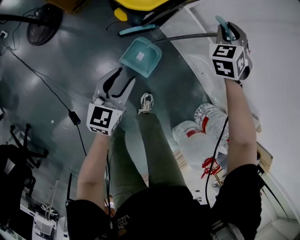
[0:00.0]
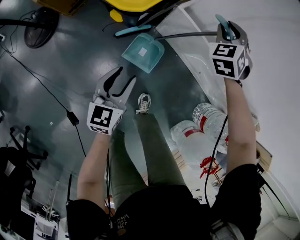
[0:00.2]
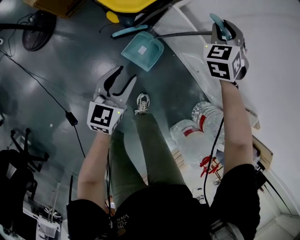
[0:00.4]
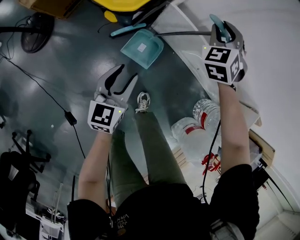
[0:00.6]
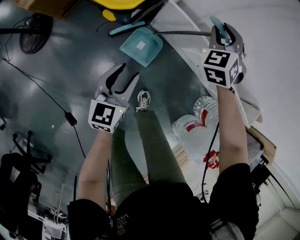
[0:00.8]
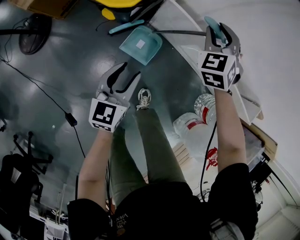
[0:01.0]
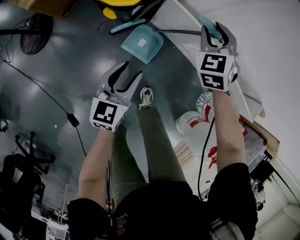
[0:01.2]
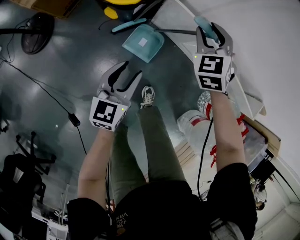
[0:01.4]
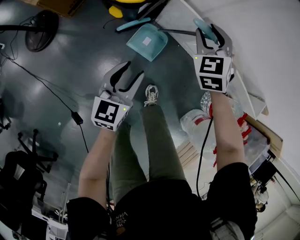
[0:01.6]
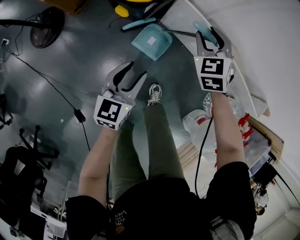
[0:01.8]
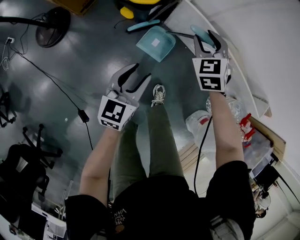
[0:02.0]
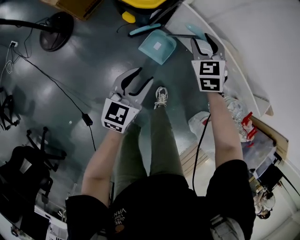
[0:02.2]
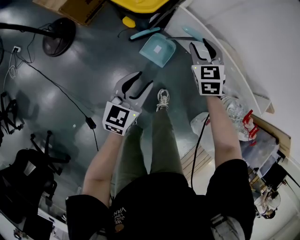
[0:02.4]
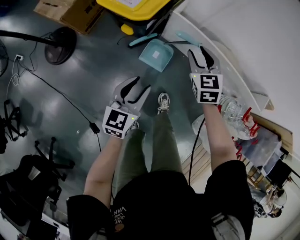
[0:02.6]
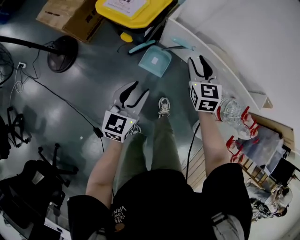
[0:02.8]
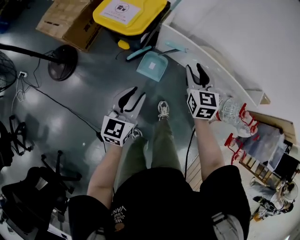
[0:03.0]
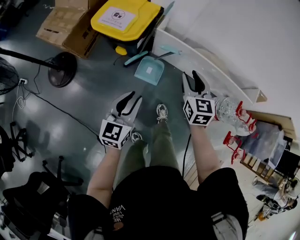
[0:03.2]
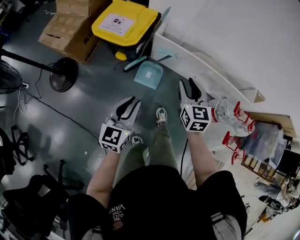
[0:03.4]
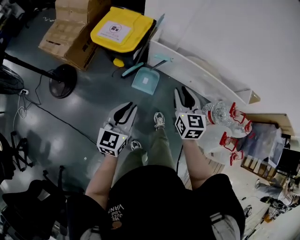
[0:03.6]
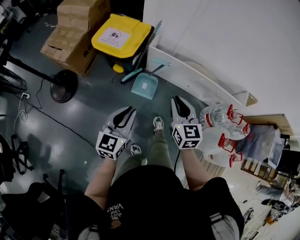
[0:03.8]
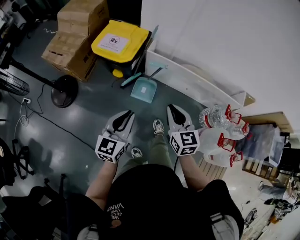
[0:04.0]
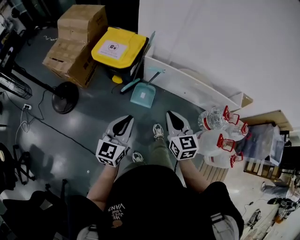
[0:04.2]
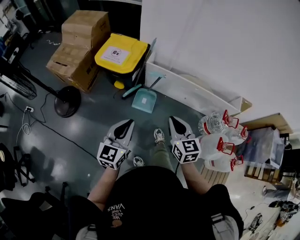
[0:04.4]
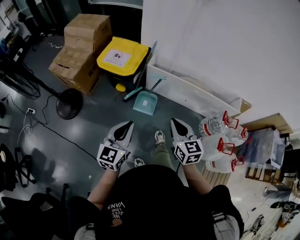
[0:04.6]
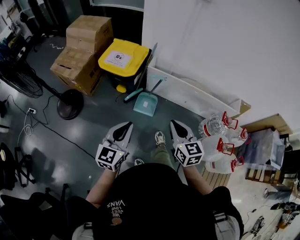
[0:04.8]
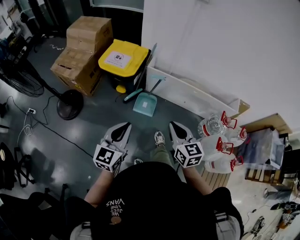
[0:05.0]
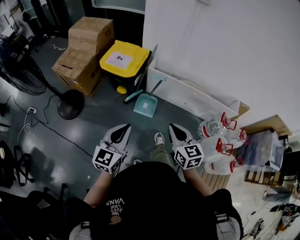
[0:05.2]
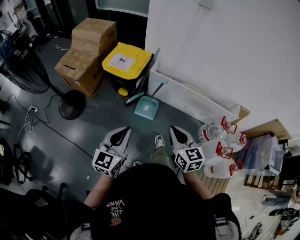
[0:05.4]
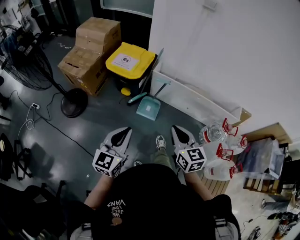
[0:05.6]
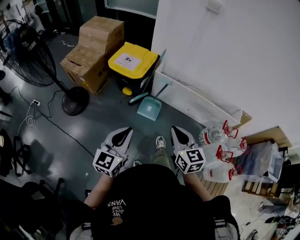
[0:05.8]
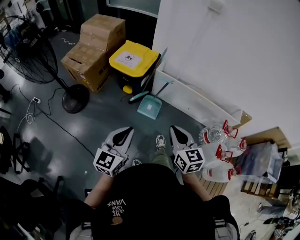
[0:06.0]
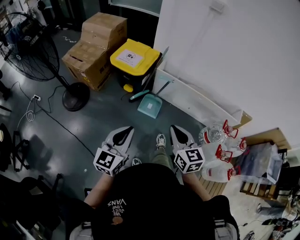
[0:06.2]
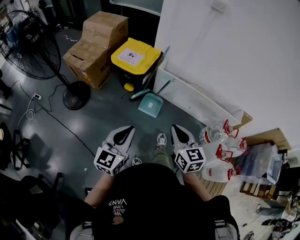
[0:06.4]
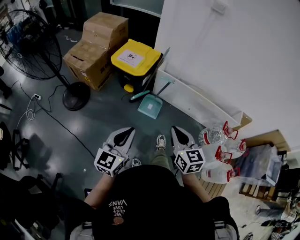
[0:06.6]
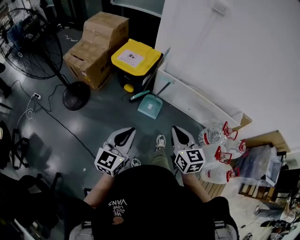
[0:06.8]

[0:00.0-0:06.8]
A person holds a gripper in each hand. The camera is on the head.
0:00.0 to 0:01.4: The right gripper shifts roughly 10 cm backward.
0:01.4 to 0:02.8: The right gripper moves backward and upward, about 15 cm, and turns by roughly 30 degrees; the left gripper heads upward and backward, covering roughly 15 cm.
0:02.8 to 0:04.0: The left gripper travels upward and backward by approximately 15 cm, and closes. Meanwhile the right gripper shifts some 25 cm backward and upward, and closes its fingers.
0:04.0 to 0:05.4: The two grippers go about 10 cm backward and upward.
0:05.4 to 0:06.8: The grippers make only small movements.

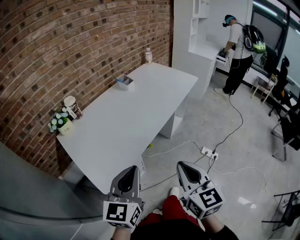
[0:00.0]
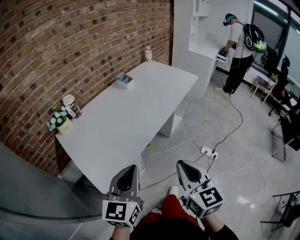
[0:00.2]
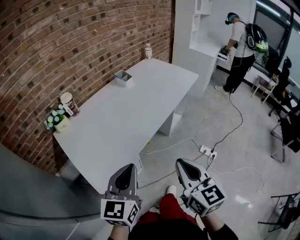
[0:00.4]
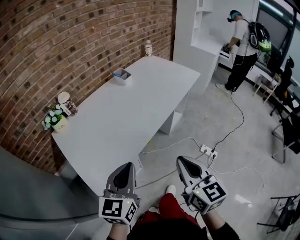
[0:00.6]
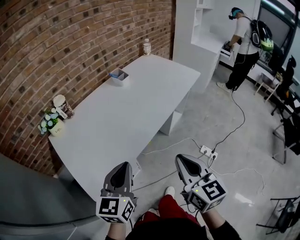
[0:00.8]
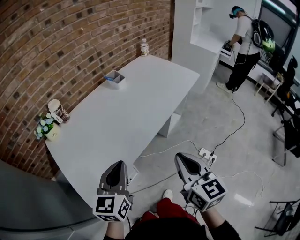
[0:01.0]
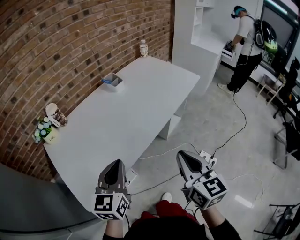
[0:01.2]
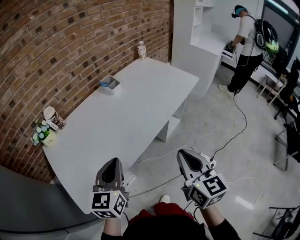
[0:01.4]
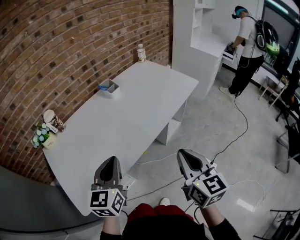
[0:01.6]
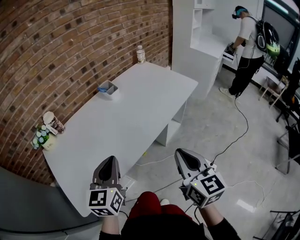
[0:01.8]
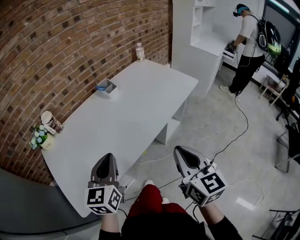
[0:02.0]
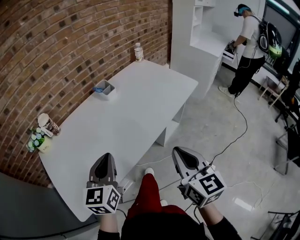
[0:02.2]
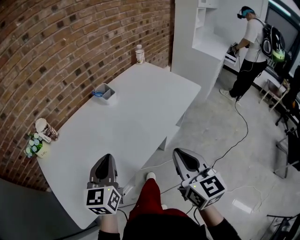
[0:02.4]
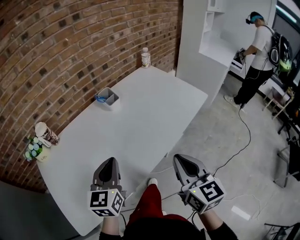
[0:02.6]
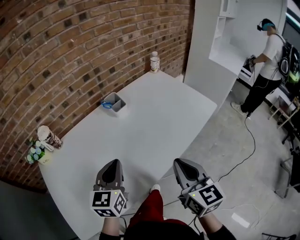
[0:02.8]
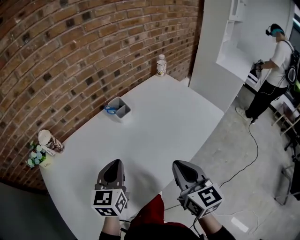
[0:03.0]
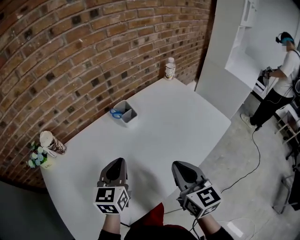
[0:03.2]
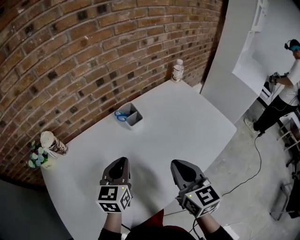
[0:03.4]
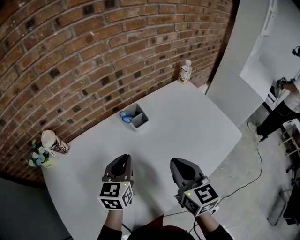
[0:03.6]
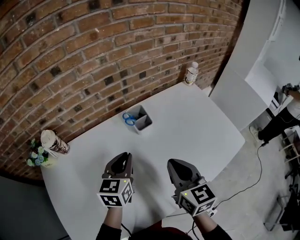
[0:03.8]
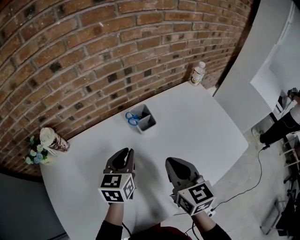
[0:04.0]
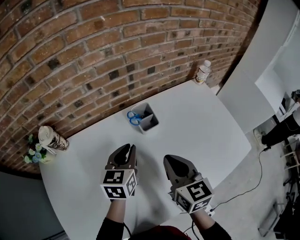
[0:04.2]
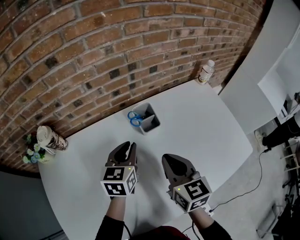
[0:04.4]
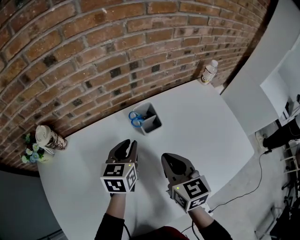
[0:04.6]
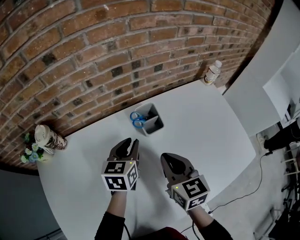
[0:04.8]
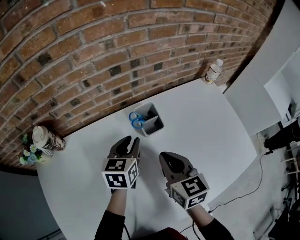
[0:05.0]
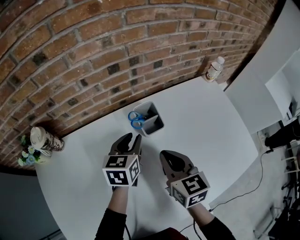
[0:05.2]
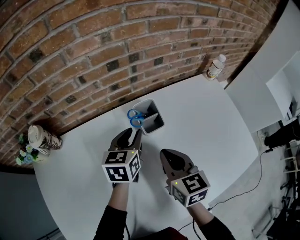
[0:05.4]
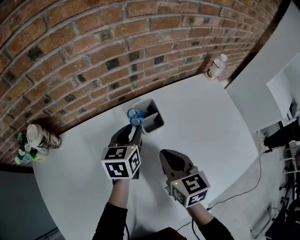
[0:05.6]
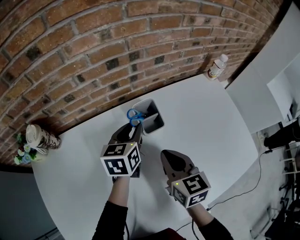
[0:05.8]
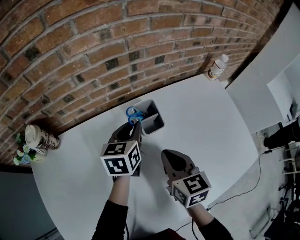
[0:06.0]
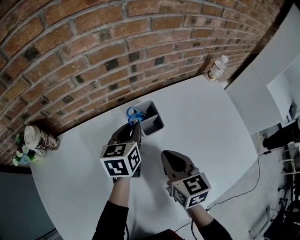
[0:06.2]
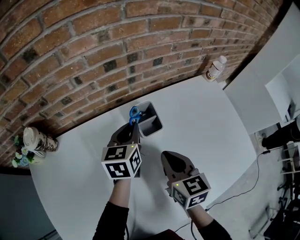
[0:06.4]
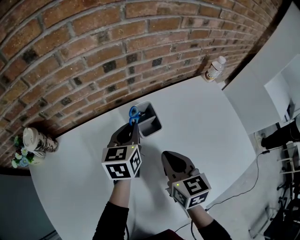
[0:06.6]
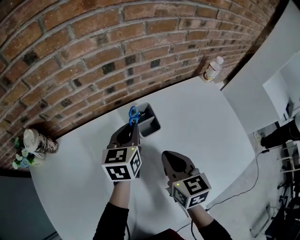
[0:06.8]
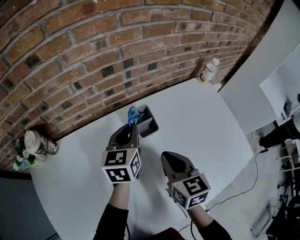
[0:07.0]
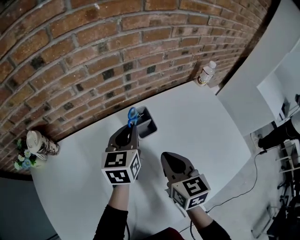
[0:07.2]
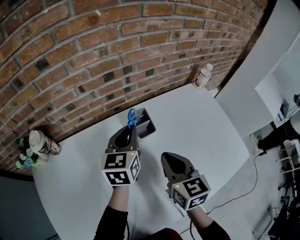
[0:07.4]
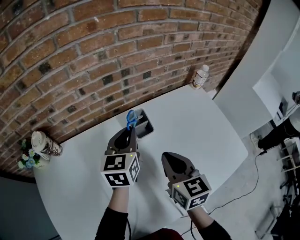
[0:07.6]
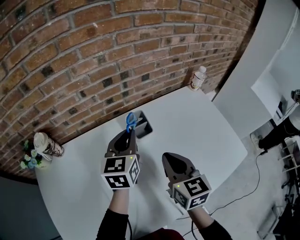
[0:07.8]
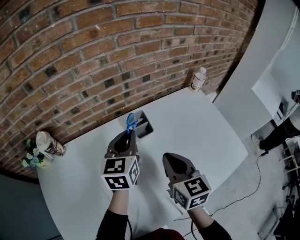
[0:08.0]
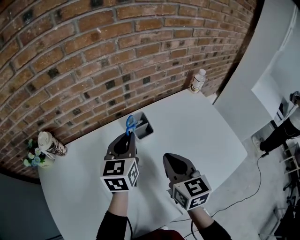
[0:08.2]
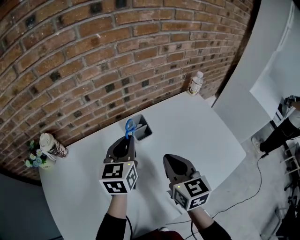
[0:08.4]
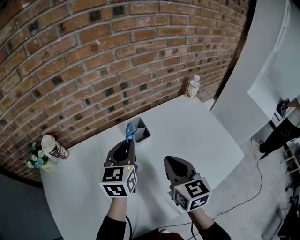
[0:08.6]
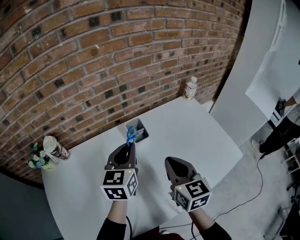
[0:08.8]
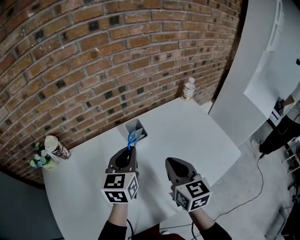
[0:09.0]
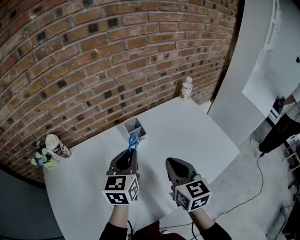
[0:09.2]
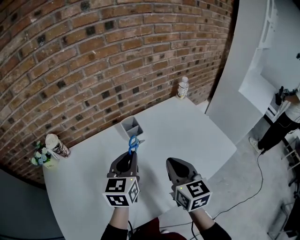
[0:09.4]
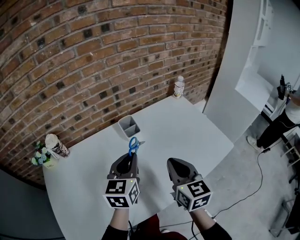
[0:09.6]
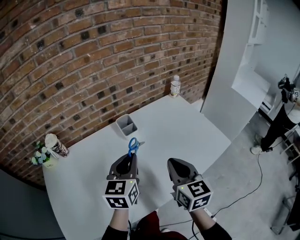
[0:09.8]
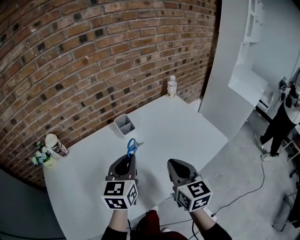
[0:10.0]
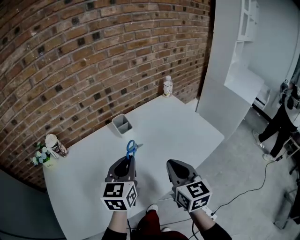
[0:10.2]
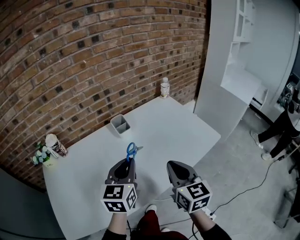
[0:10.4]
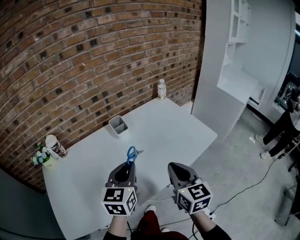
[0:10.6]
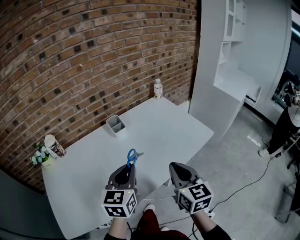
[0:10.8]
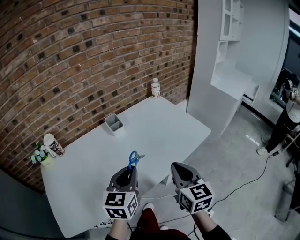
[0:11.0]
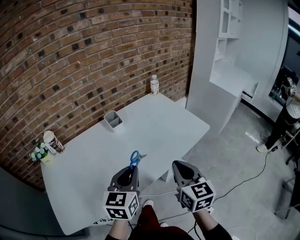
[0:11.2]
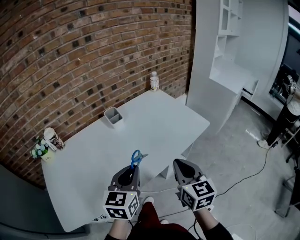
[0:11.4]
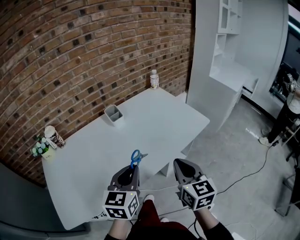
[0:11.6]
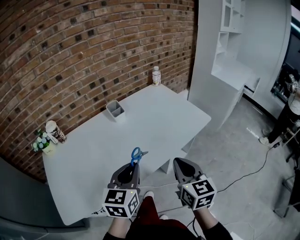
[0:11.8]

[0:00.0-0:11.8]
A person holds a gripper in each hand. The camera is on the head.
0:00.0 to 0:01.4: The left gripper is displaced forward by about 20 cm, while the right gripper shifts approximately 25 cm forward and to the right.
0:01.4 to 0:03.0: Both grippers move forward, approximately 25 cm.
0:03.0 to 0:04.4: The grippers both shift forward by roughly 20 cm.
0:04.4 to 0:06.0: The left gripper moves forward, about 10 cm, while the right gripper travels downward and forward by about 10 cm.
0:06.0 to 0:07.4: Both grippers move upward, some 5 cm.
0:07.4 to 0:08.8: The left gripper moves backward and upward, roughly 10 cm, while the right gripper shifts approximately 10 cm upward and backward.
0:08.8 to 0:10.4: The right gripper is displaced backward and to the right by roughly 20 cm; the left gripper moves backward, approximately 20 cm.
0:10.4 to 0:11.8: The left gripper heads backward, covering some 15 cm; the right gripper moves backward and to the right, some 10 cm.

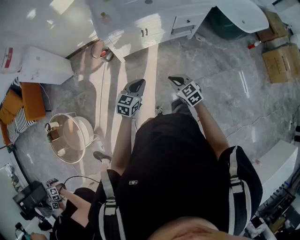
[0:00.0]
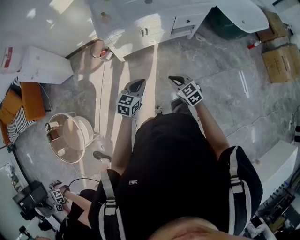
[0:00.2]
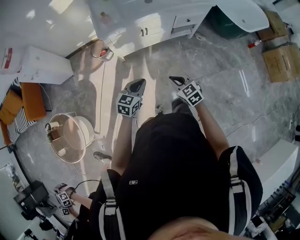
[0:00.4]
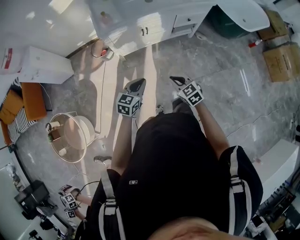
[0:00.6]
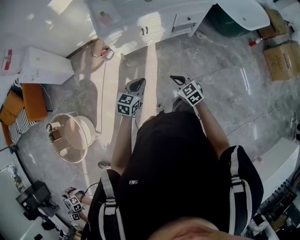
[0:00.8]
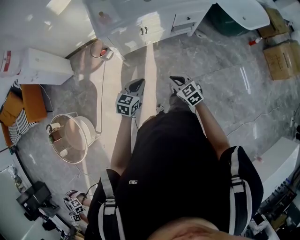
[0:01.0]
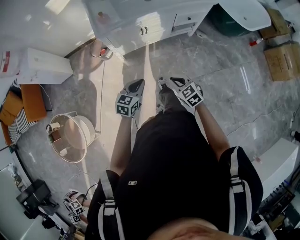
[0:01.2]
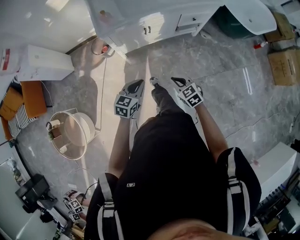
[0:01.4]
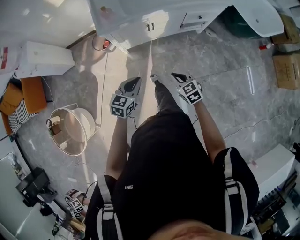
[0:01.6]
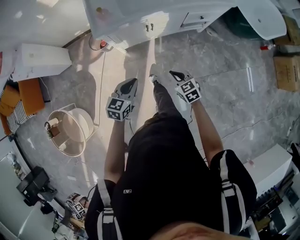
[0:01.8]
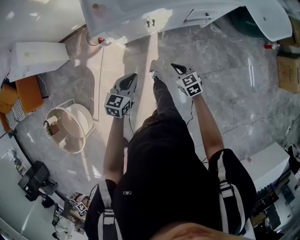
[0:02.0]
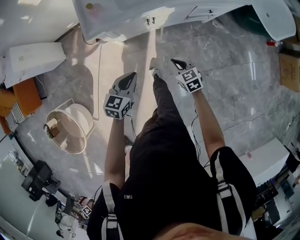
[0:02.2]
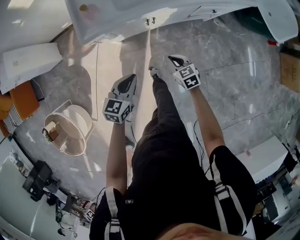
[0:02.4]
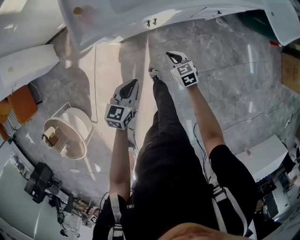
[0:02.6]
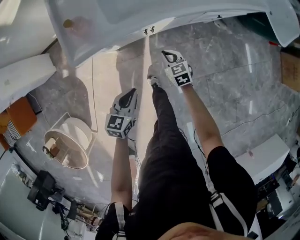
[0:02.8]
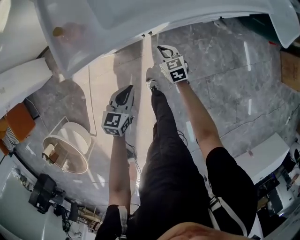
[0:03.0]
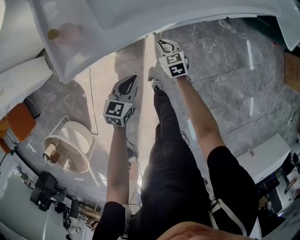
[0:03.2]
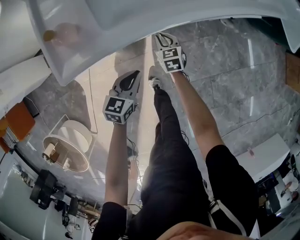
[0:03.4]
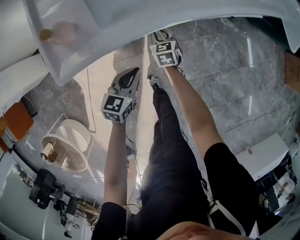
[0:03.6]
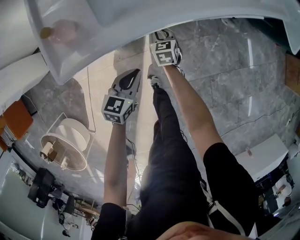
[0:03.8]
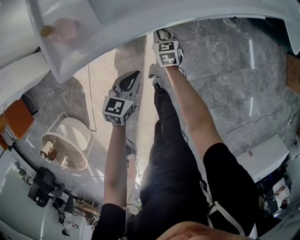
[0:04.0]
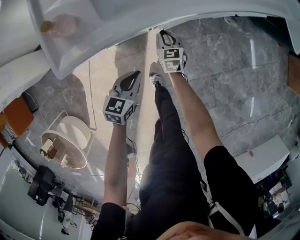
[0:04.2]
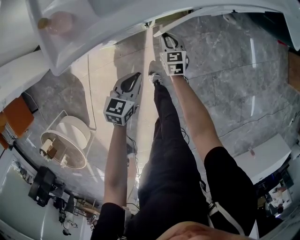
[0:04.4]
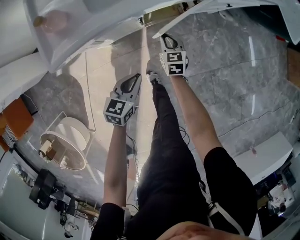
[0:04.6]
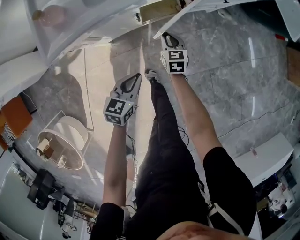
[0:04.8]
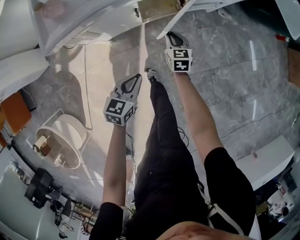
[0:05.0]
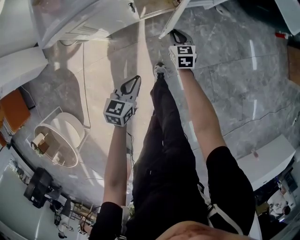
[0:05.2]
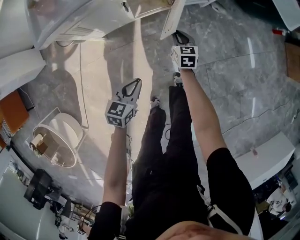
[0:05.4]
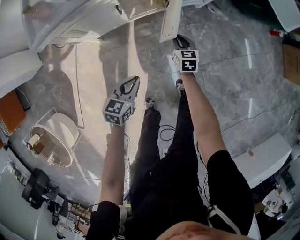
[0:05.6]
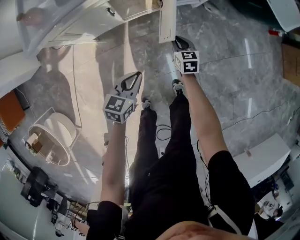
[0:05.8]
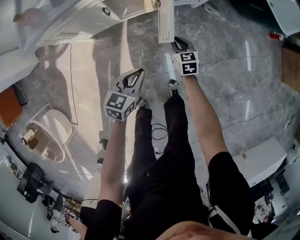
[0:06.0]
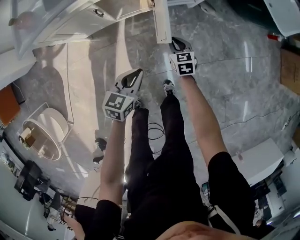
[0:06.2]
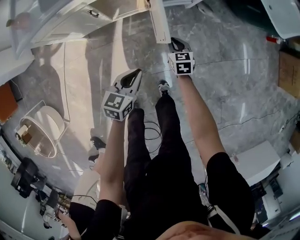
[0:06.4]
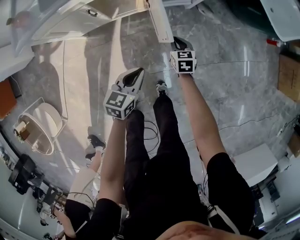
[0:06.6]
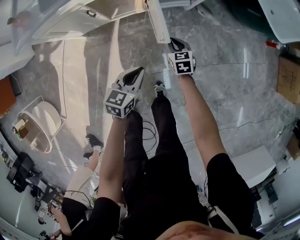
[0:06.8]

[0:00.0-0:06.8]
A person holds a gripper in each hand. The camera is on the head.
0:00.0 to 0:01.4: The right gripper moves approximately 5 cm.
0:01.4 to 0:02.8: The left gripper goes roughly 25 cm forward and downward, while the right gripper moves forward and downward, approximately 40 cm.
0:02.8 to 0:04.0: Both grippers move forward and downward, roughly 15 cm.
0:04.0 to 0:05.4: The right gripper heads to the right and backward, covering some 25 cm. Meanwhile the left gripper heads backward and to the right, covering about 20 cm.
0:05.4 to 0:06.8: The left gripper moves to the right and forward, about 25 cm, while the right gripper shifts some 15 cm to the right.
